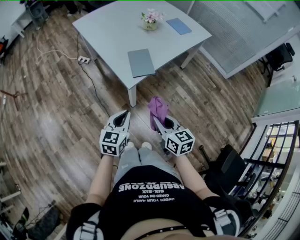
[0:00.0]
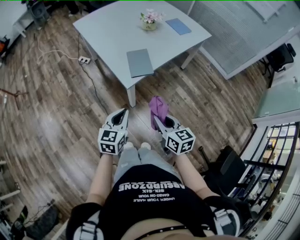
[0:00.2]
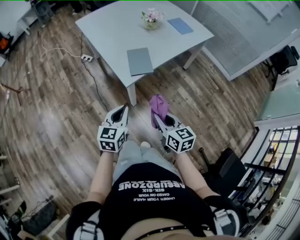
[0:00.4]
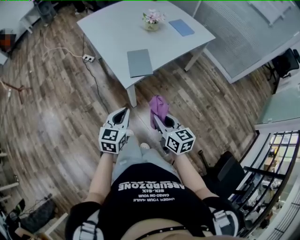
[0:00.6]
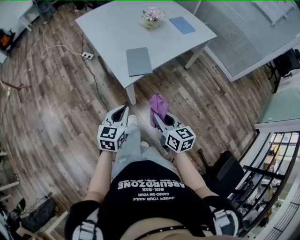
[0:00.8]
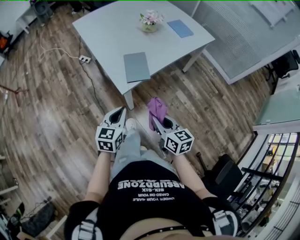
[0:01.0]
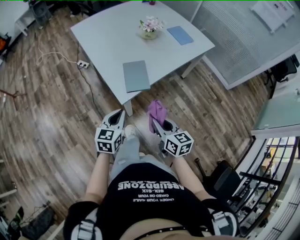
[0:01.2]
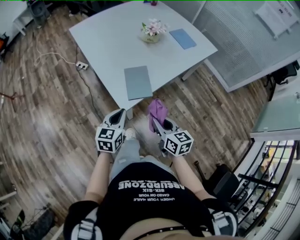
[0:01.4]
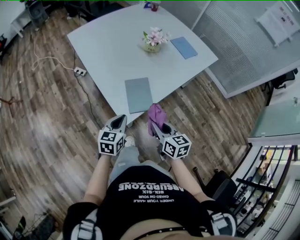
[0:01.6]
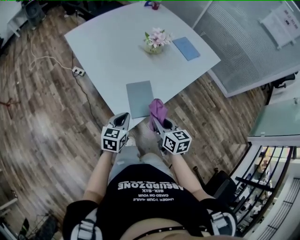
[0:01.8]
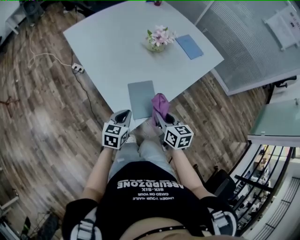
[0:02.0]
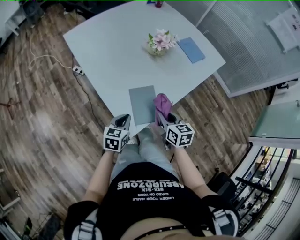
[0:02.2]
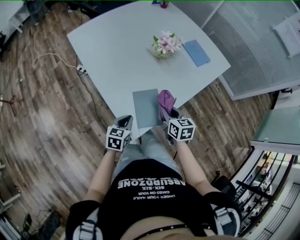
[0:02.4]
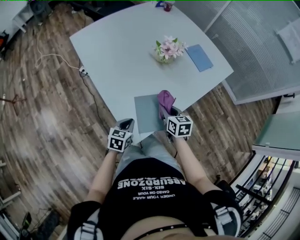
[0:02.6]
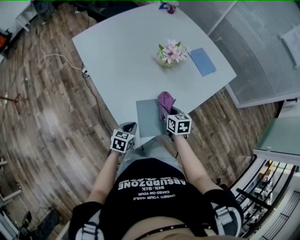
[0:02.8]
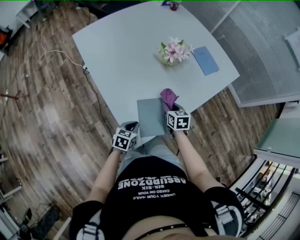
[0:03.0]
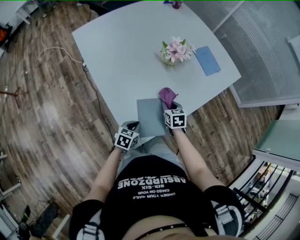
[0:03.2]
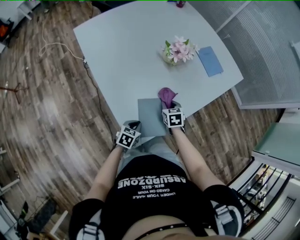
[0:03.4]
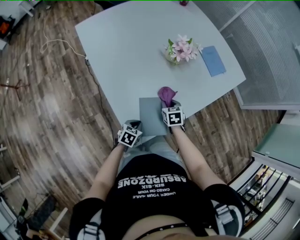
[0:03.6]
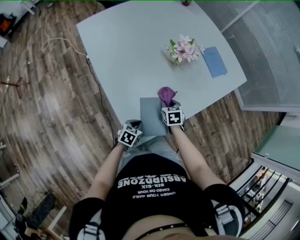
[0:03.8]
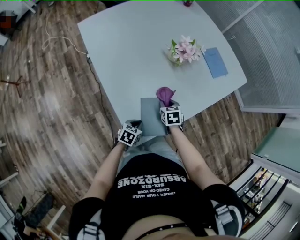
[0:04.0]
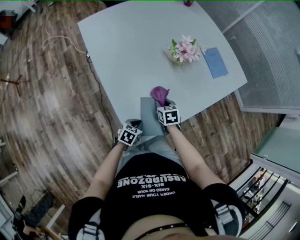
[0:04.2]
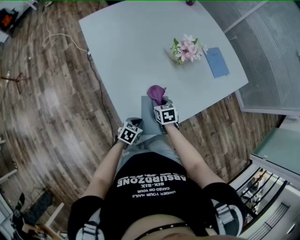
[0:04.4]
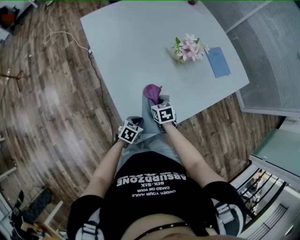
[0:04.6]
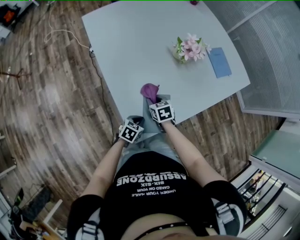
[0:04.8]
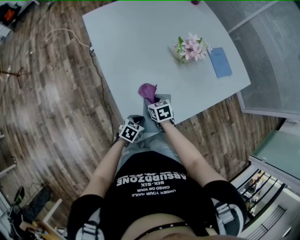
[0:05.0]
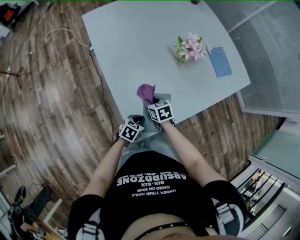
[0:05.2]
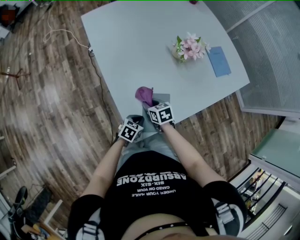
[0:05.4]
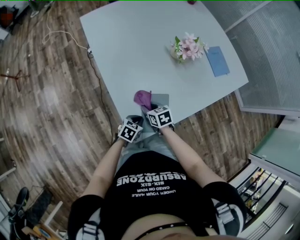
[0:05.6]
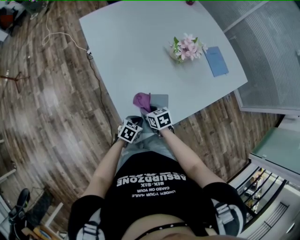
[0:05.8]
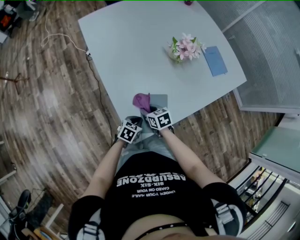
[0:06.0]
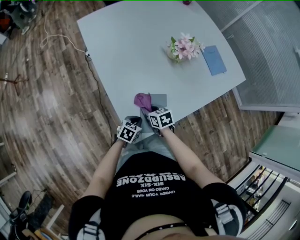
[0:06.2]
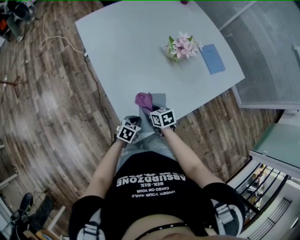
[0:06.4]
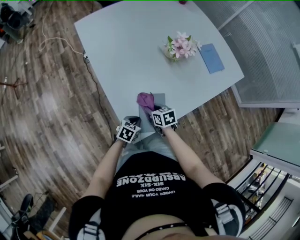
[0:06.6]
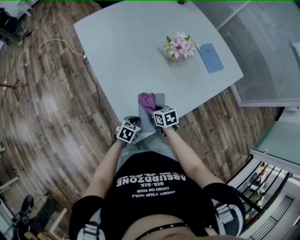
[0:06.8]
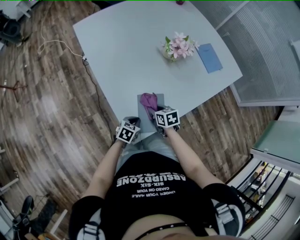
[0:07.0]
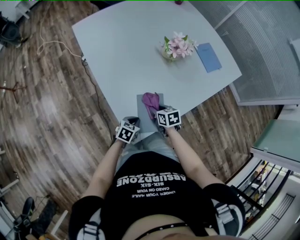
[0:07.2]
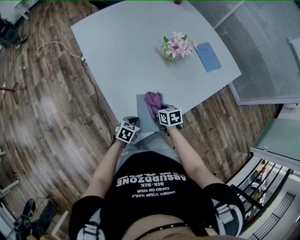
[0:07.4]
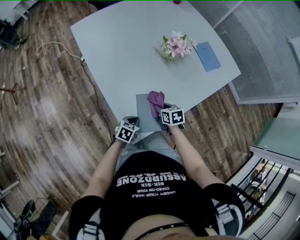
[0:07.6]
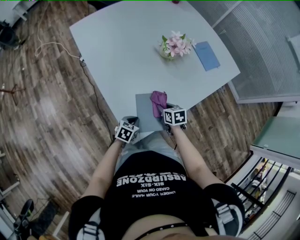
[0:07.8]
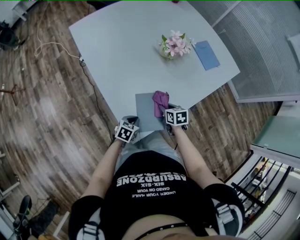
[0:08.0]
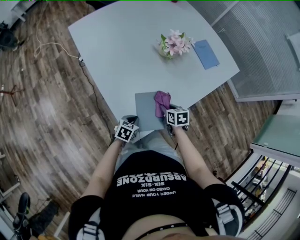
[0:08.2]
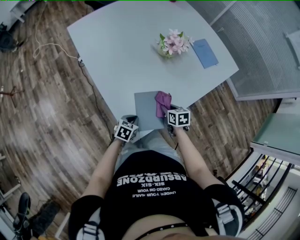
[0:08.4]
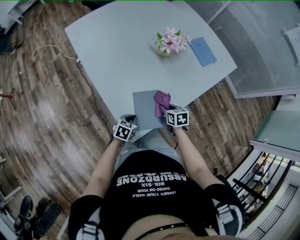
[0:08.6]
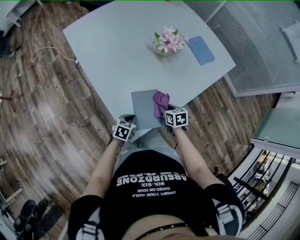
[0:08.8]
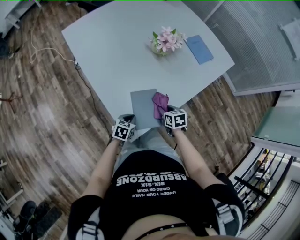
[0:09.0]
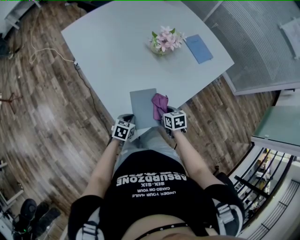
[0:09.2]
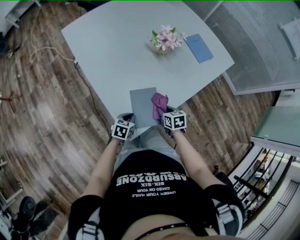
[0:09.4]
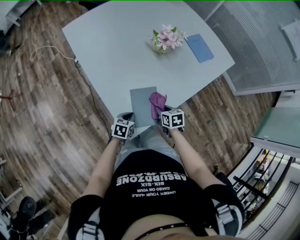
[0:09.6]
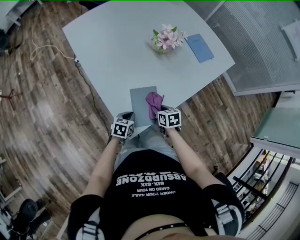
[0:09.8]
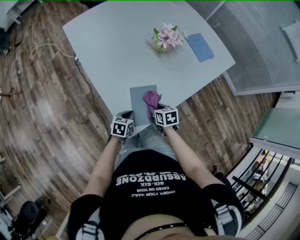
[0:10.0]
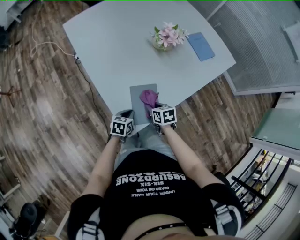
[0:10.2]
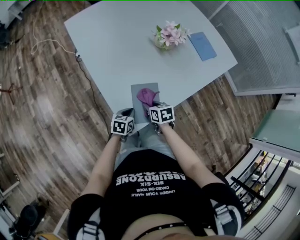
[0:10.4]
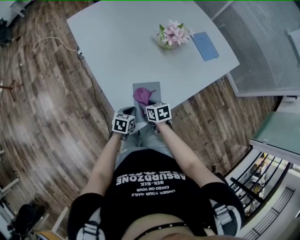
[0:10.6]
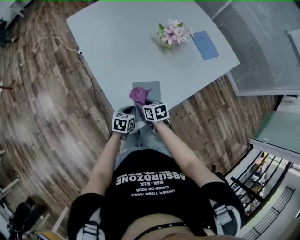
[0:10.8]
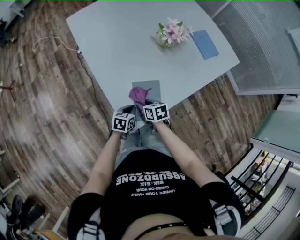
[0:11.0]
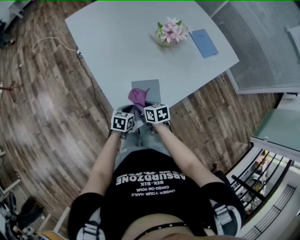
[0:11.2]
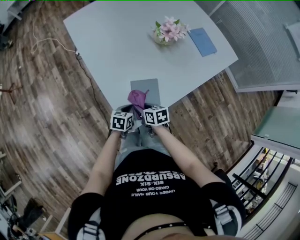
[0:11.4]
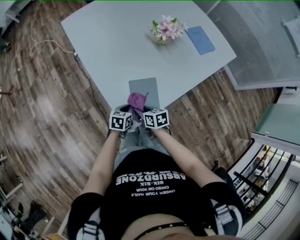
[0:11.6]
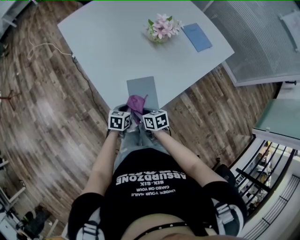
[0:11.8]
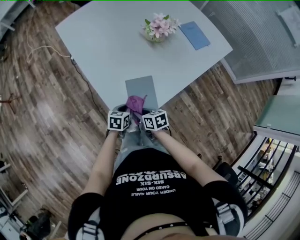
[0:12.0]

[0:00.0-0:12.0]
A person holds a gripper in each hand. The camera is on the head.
0:00.0 to 0:01.6: Both grippers move forward, some 20 cm.
0:01.6 to 0:03.0: The left gripper heads forward and downward, covering about 20 cm, and swivels roughly 20 degrees; the right gripper moves forward and downward, roughly 30 cm, and rotates roughly 20 degrees.
0:03.0 to 0:04.4: The right gripper travels to the left and downward by roughly 10 cm.
0:04.4 to 0:06.0: The right gripper goes approximately 10 cm backward and to the left.
0:06.0 to 0:07.6: The right gripper is displaced to the right by roughly 10 cm.
0:07.6 to 0:09.0: The right gripper heads to the right, covering roughly 5 cm.
0:09.0 to 0:10.4: The right gripper goes approximately 10 cm to the left.
0:10.4 to 0:12.0: The right gripper goes roughly 5 cm backward.

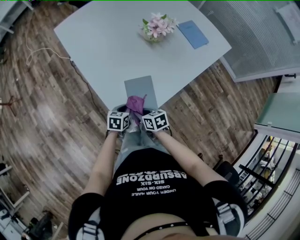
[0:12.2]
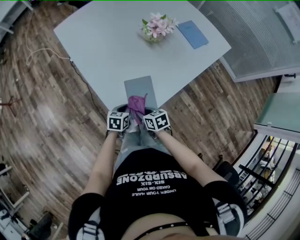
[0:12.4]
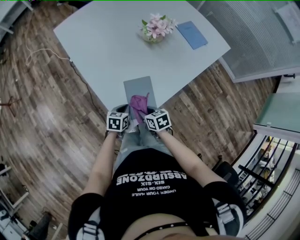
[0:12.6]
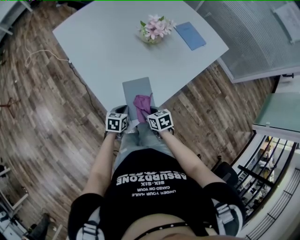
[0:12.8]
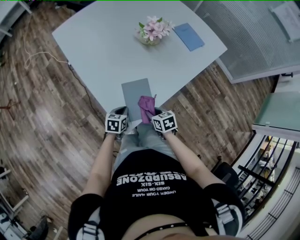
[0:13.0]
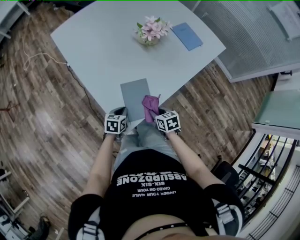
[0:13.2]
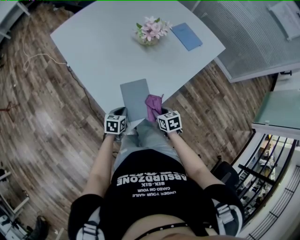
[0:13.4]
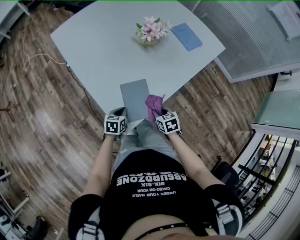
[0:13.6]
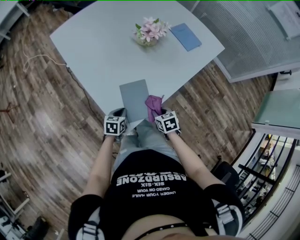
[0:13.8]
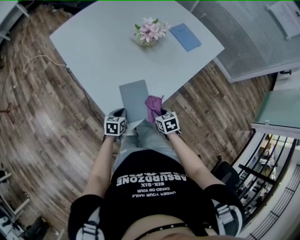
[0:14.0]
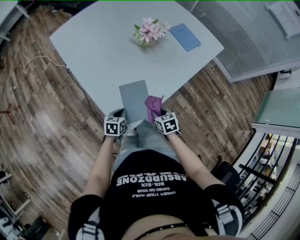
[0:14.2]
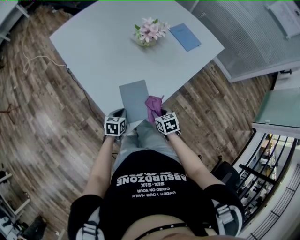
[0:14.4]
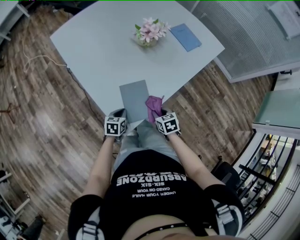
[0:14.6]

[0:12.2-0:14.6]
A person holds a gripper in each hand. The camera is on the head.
0:12.2 to 0:13.4: The right gripper shifts approximately 15 cm to the right.
0:13.4 to 0:14.6: The grippers stay close to where they were, moving slightly.

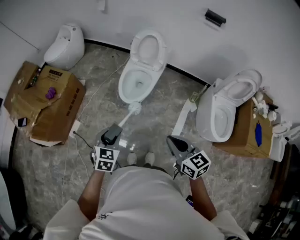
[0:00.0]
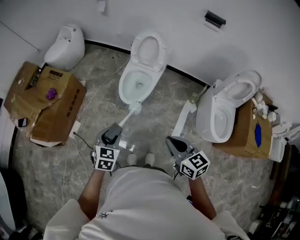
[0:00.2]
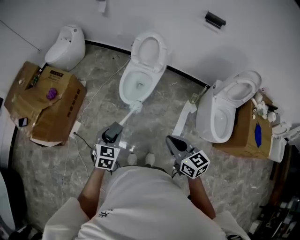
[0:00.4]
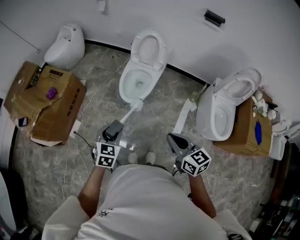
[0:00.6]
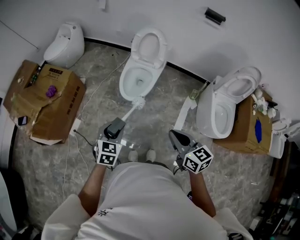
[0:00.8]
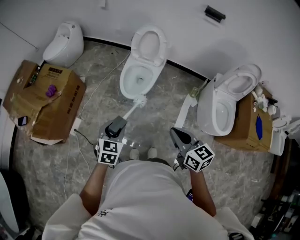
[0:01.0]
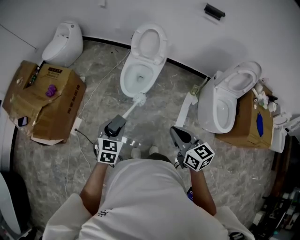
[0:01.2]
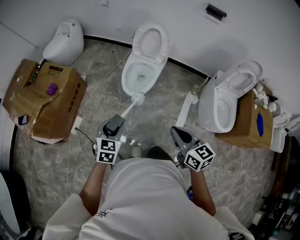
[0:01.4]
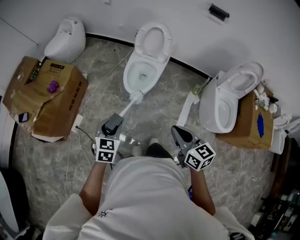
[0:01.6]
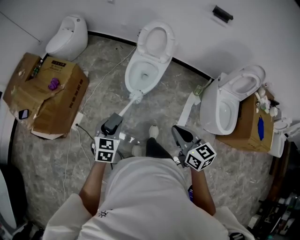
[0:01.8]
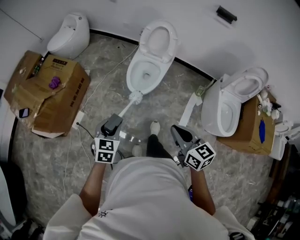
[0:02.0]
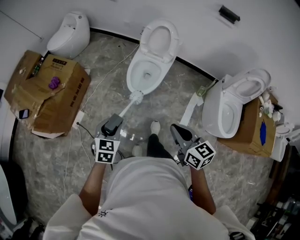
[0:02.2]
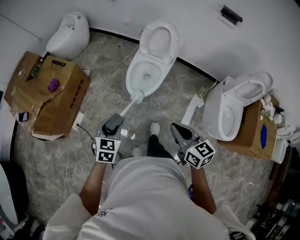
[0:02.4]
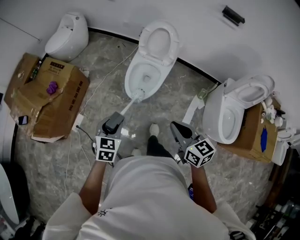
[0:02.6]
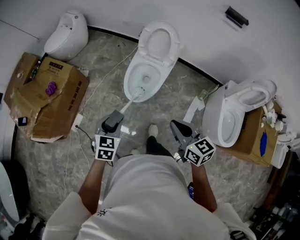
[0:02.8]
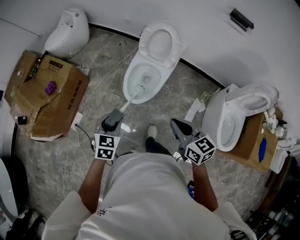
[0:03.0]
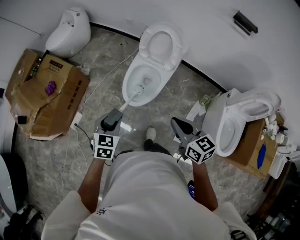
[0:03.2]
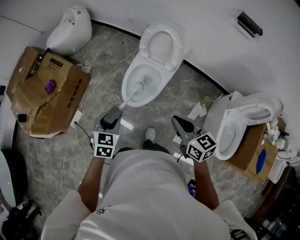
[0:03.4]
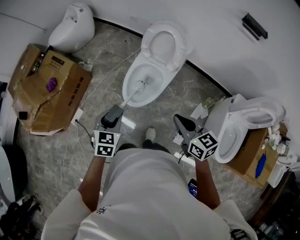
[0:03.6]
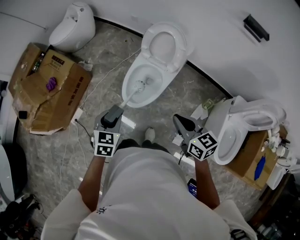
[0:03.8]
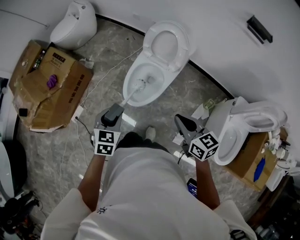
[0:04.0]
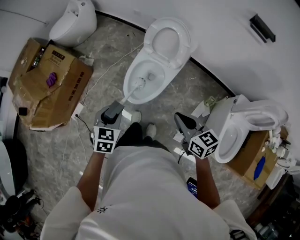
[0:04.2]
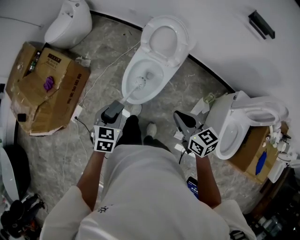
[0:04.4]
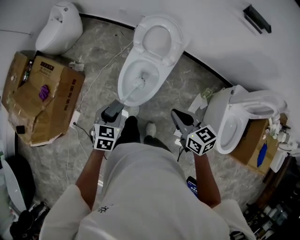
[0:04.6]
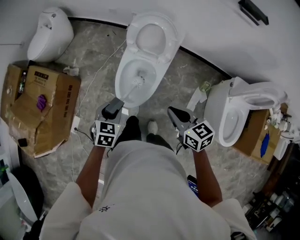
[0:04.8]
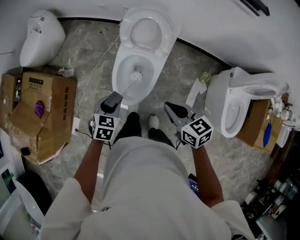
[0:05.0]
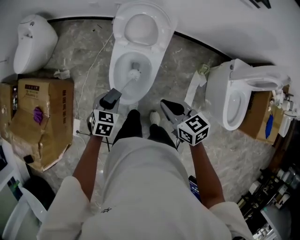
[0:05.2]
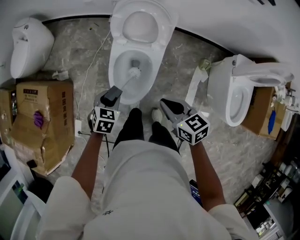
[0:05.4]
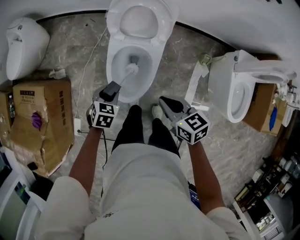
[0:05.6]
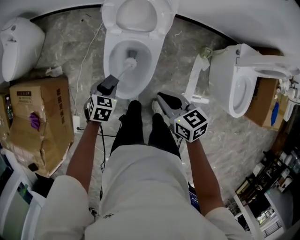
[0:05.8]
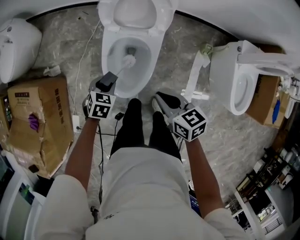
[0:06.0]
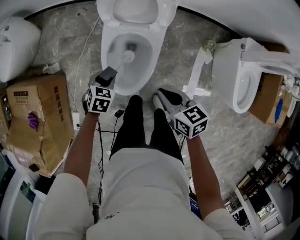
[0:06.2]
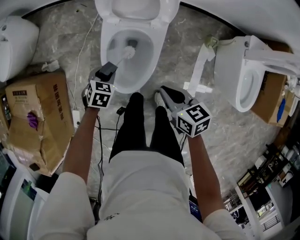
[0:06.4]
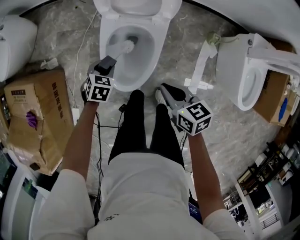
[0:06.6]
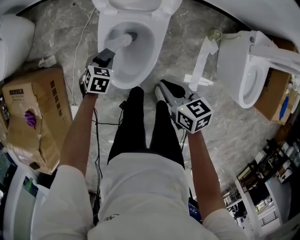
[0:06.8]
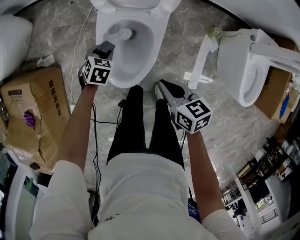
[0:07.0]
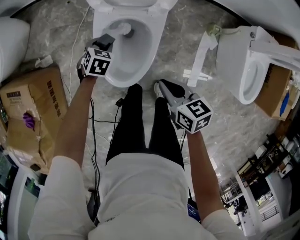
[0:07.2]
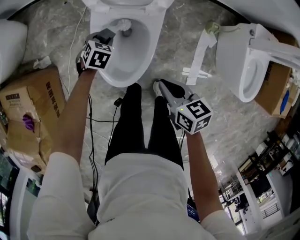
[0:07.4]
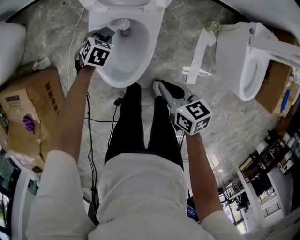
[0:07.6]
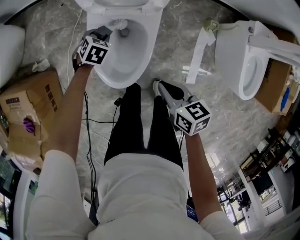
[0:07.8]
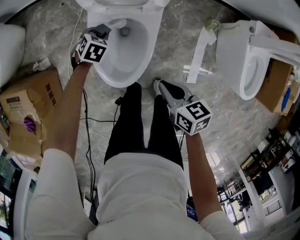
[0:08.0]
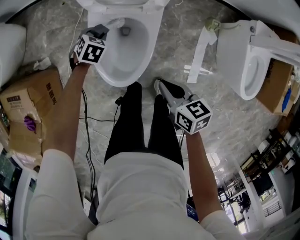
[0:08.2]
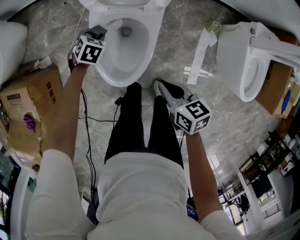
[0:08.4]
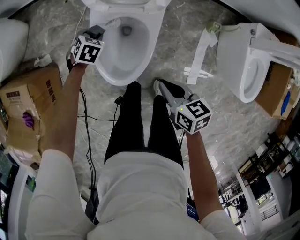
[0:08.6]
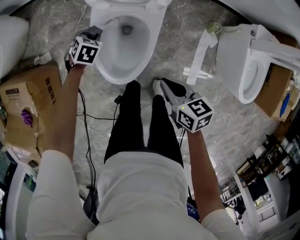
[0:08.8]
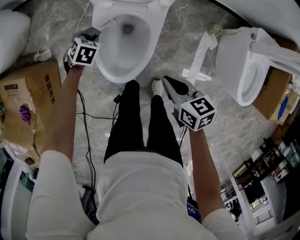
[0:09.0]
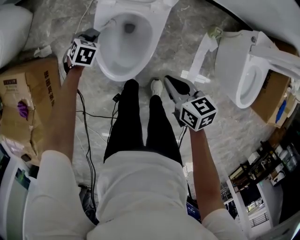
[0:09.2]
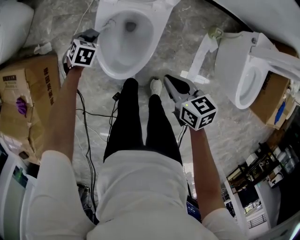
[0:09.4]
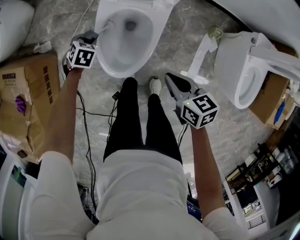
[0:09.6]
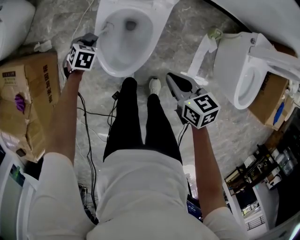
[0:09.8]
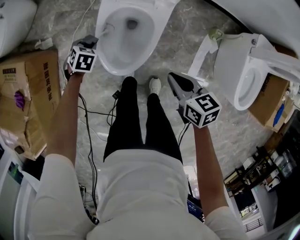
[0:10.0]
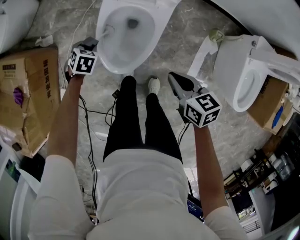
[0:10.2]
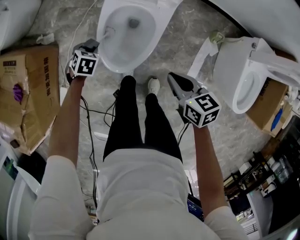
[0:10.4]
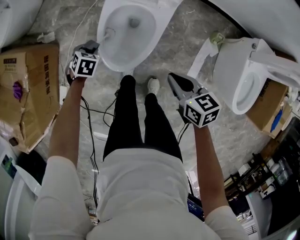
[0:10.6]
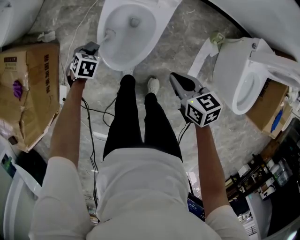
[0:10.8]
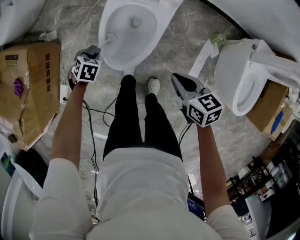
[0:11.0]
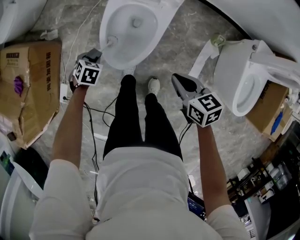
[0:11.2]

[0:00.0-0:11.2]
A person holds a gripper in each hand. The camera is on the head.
0:00.0 to 0:01.6: The left gripper is displaced to the left by about 5 cm.
0:01.6 to 0:03.2: The two grippers go about 25 cm forward and to the right.
0:03.2 to 0:04.8: The left gripper shifts roughly 20 cm forward, downward and to the right. The right gripper is displaced forward and downward by about 15 cm.
0:04.8 to 0:06.4: Both grippers travel together downward and forward, approximately 25 cm. The right gripper changes its angle by roughly 20 degrees. Meanwhile the left gripper turns by some 20 degrees.
0:06.4 to 0:08.0: The left gripper moves forward and downward, about 15 cm. Meanwhile the right gripper is displaced downward by about 5 cm.
0:08.0 to 0:09.6: The left gripper heads to the left, covering roughly 10 cm.
0:09.6 to 0:11.2: The left gripper changes place by about 15 cm; the right gripper moves some 5 cm.
